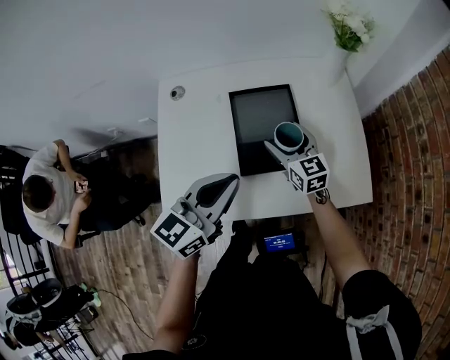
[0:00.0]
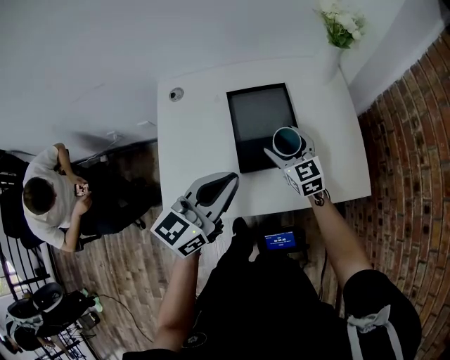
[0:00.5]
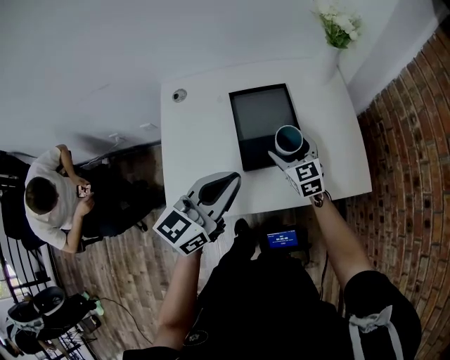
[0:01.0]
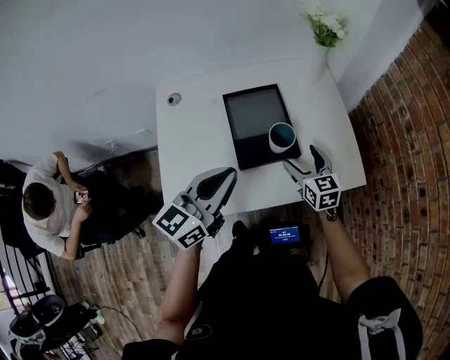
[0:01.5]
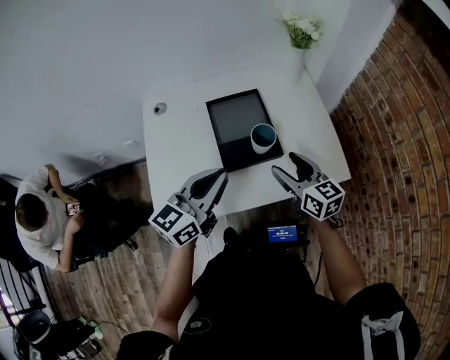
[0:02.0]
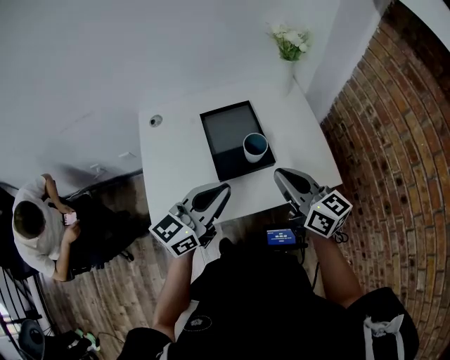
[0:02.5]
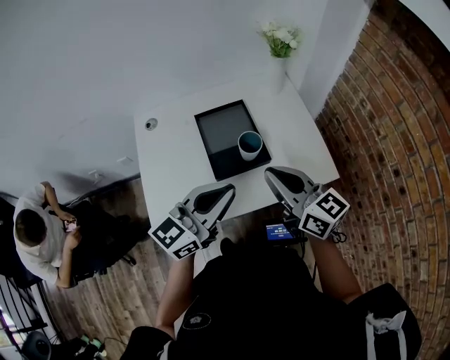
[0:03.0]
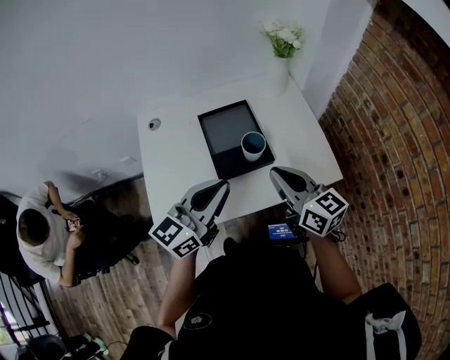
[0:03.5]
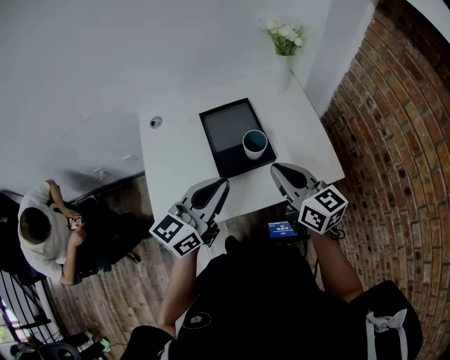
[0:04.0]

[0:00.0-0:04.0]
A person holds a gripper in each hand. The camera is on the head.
0:00.0 to 0:02.0: The right gripper moves backward, to the right and upward, roughly 15 cm.
0:02.0 to 0:04.0: The right gripper heads upward, covering some 10 cm, and closes its fingers.

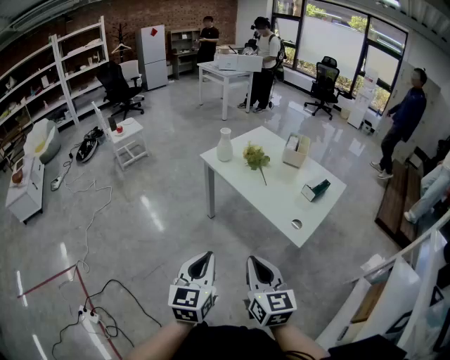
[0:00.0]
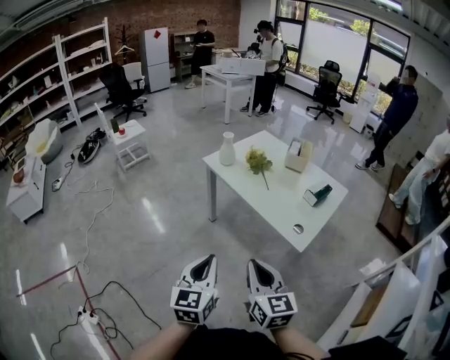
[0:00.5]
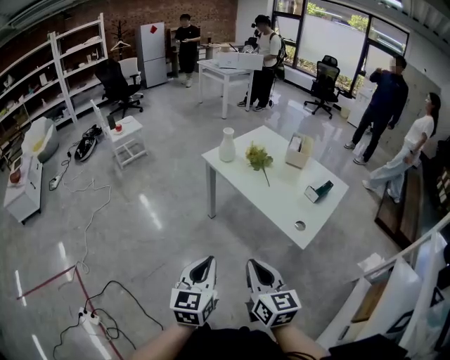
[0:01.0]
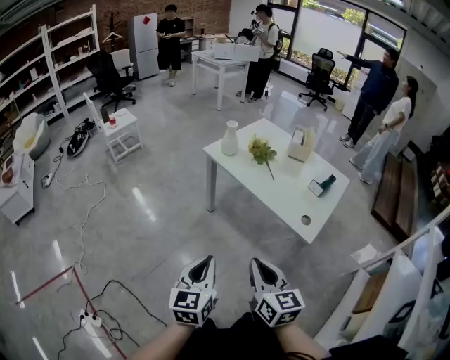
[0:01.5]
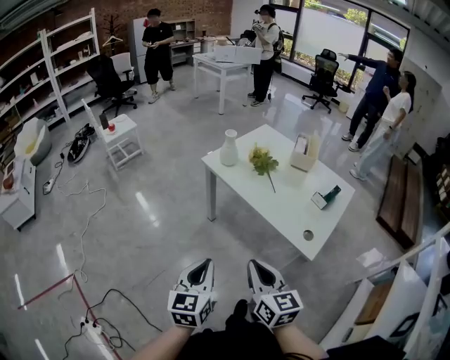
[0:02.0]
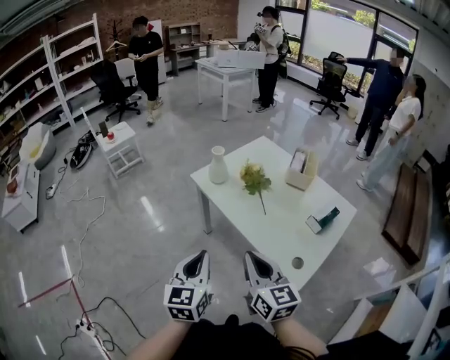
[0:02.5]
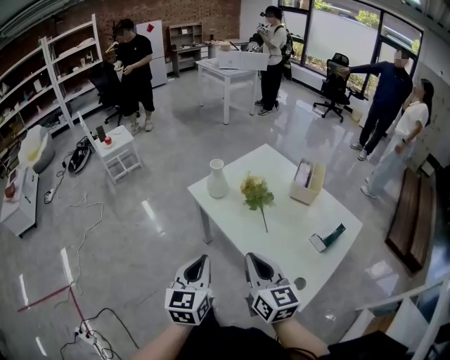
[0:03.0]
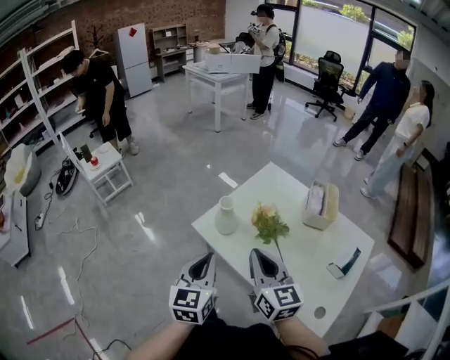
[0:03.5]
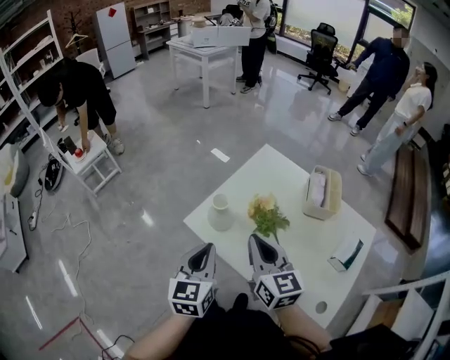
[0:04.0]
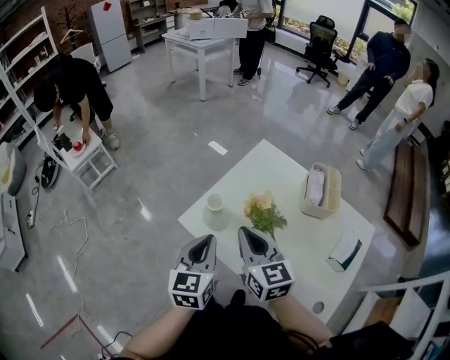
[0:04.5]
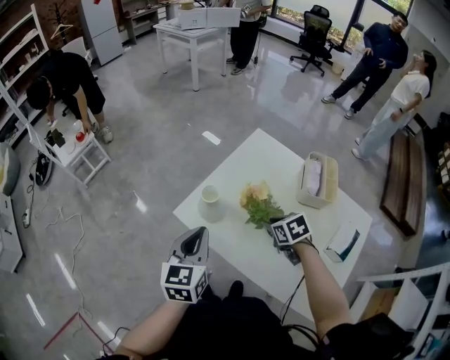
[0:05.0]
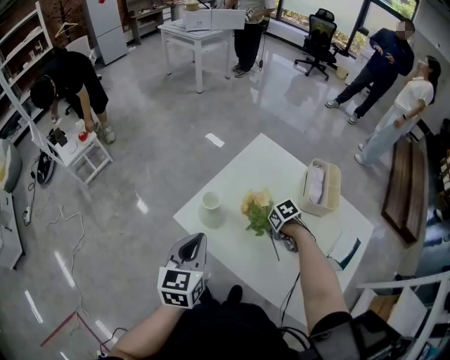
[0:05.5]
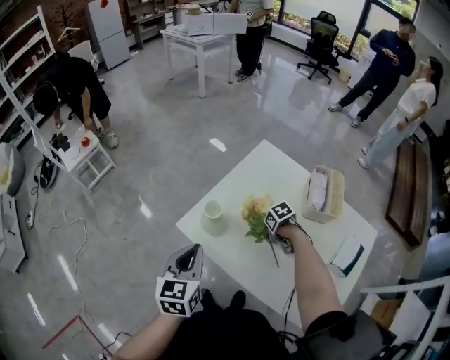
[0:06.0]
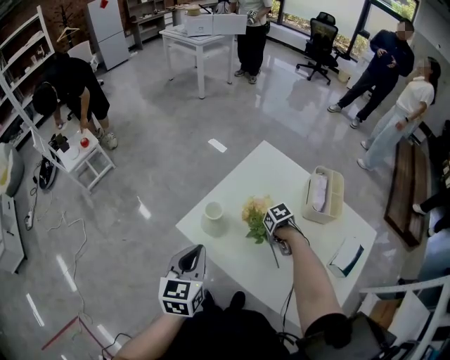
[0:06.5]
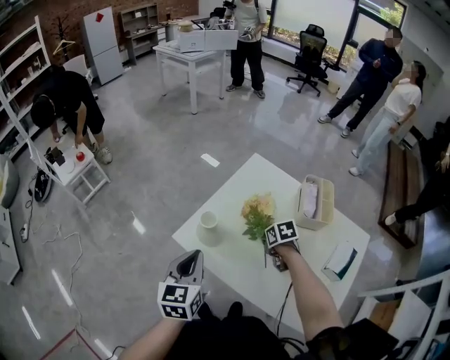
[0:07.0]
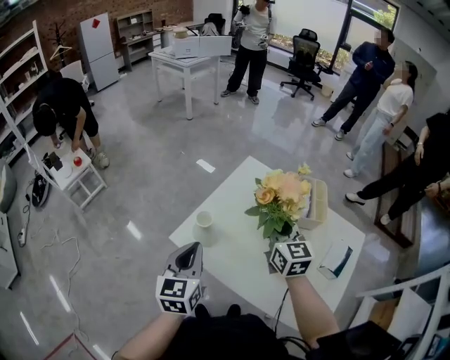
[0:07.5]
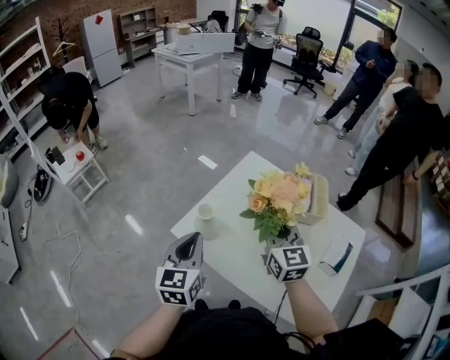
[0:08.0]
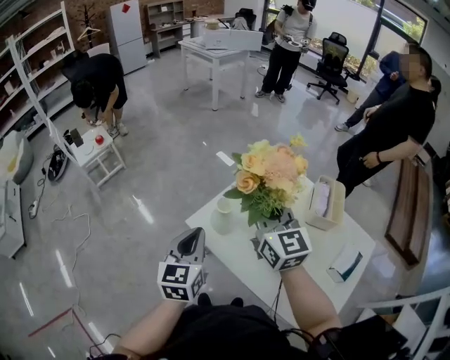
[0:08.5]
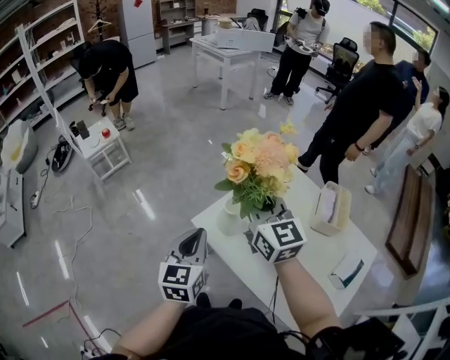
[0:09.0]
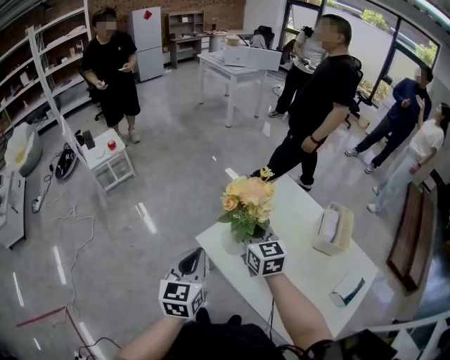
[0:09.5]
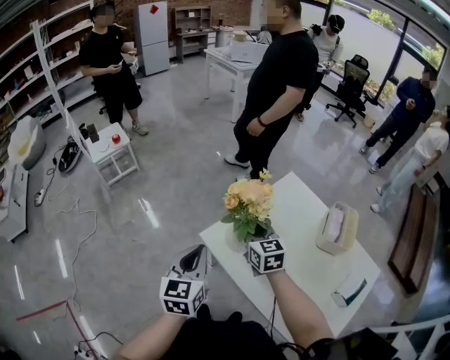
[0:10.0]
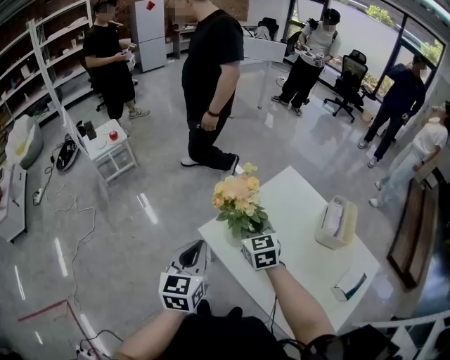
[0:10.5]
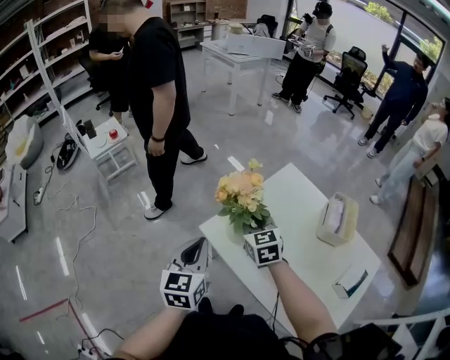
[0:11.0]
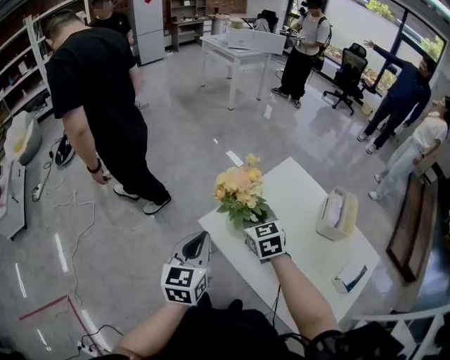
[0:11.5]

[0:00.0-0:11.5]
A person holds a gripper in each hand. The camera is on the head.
0:00.0 to 0:02.0: The left gripper shifts some 10 cm forward and to the left. Meanwhile the right gripper travels forward by roughly 10 cm.
0:02.0 to 0:04.0: The two grippers travel together, forward, about 50 cm.
0:04.0 to 0:06.0: The left gripper shifts by some 5 cm. Meanwhile the right gripper shifts approximately 30 cm downward, and points its fingers some 60 degrees further downward.
0:06.0 to 0:07.5: The right gripper shifts roughly 30 cm upward, and angles its fingers upward, by some 60 degrees.
0:07.5 to 0:09.5: The right gripper goes roughly 20 cm to the left, and rotates approximately 20 degrees. Meanwhile the left gripper travels to the left by some 10 cm.
0:09.5 to 0:11.5: The grippers move only a little.

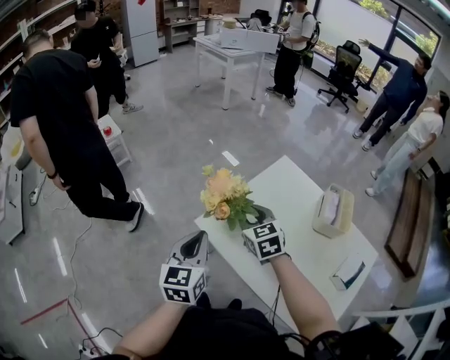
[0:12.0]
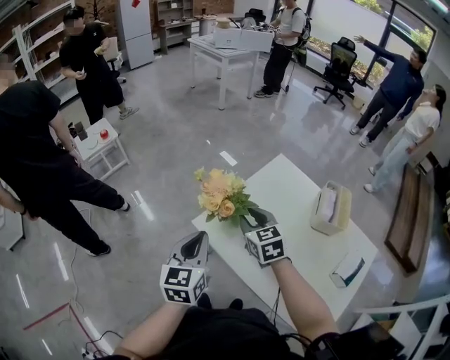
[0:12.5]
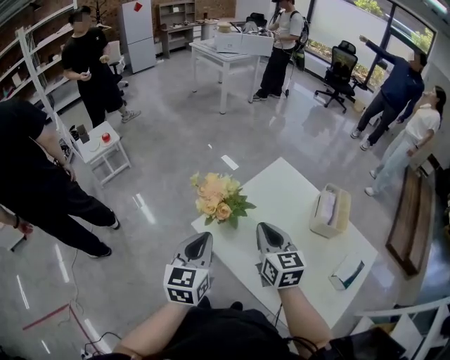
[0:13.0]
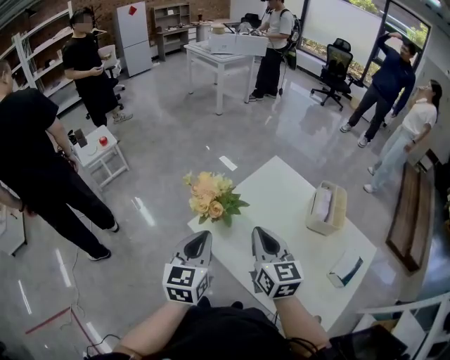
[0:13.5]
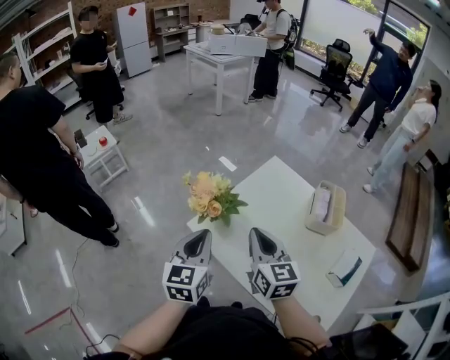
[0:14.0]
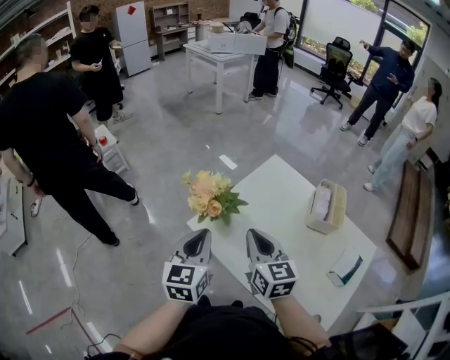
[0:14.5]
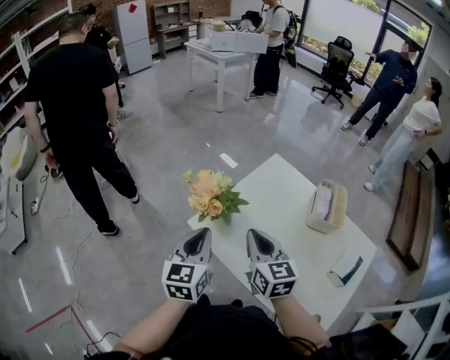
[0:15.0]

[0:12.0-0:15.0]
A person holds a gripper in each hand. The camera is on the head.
0:12.0 to 0:13.5: The right gripper travels backward, upward and to the right by some 15 cm, changes its angle by about 30 degrees, and closes.
0:13.5 to 0:15.0: The grippers make only small movements.

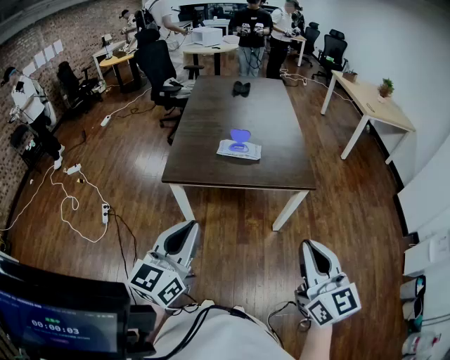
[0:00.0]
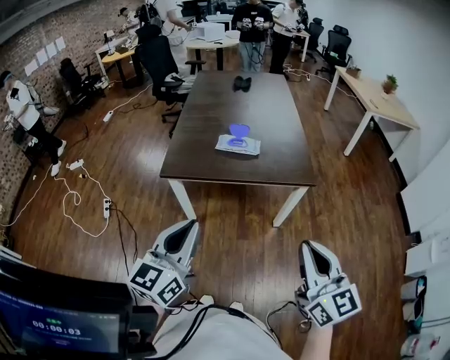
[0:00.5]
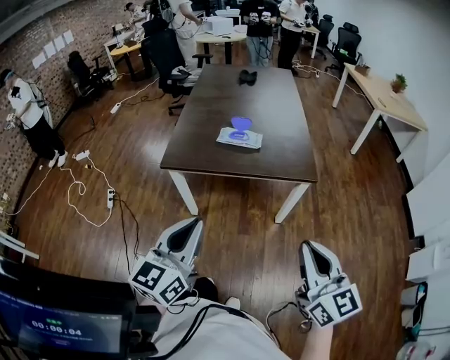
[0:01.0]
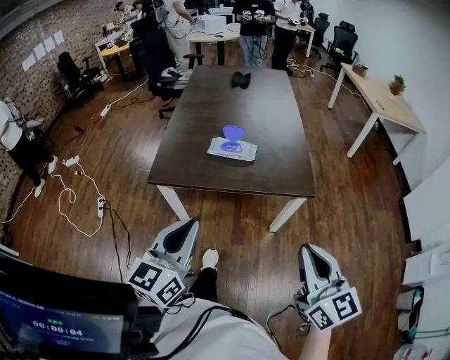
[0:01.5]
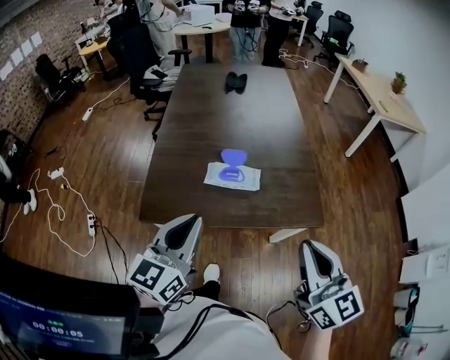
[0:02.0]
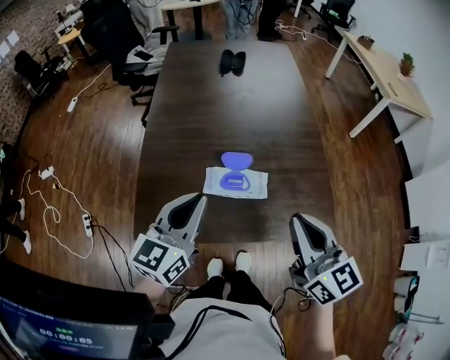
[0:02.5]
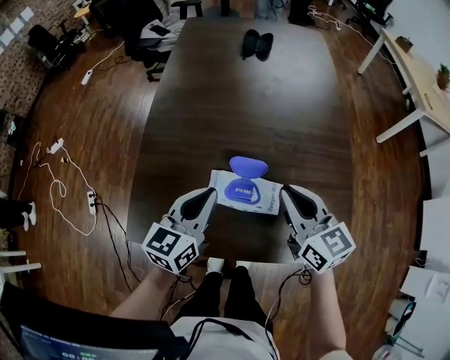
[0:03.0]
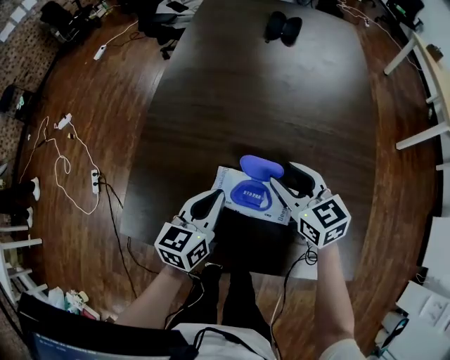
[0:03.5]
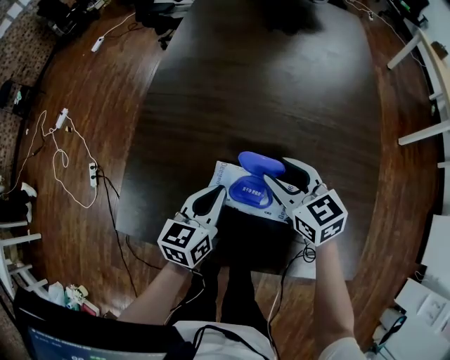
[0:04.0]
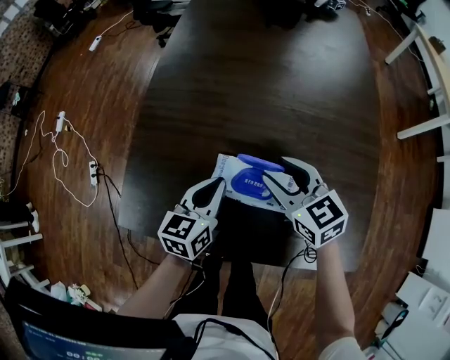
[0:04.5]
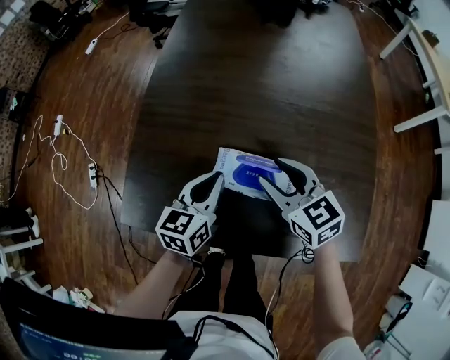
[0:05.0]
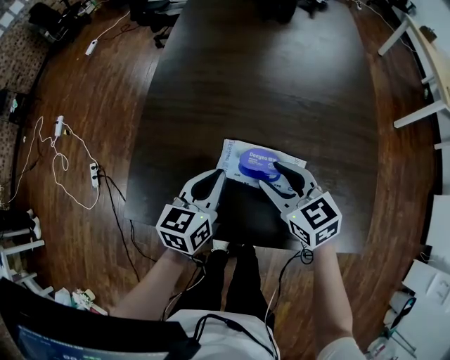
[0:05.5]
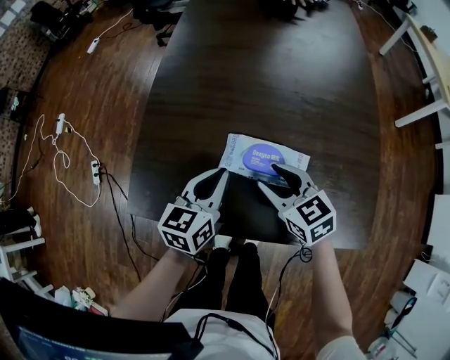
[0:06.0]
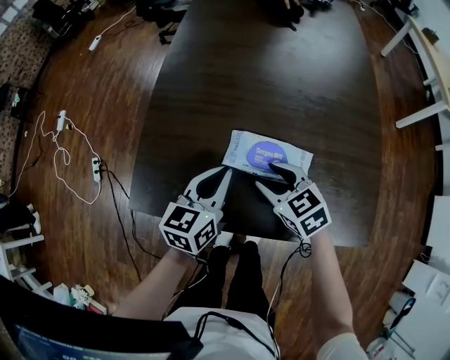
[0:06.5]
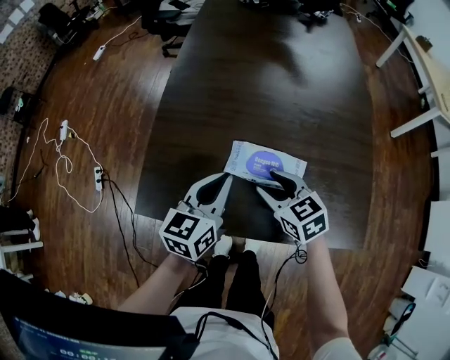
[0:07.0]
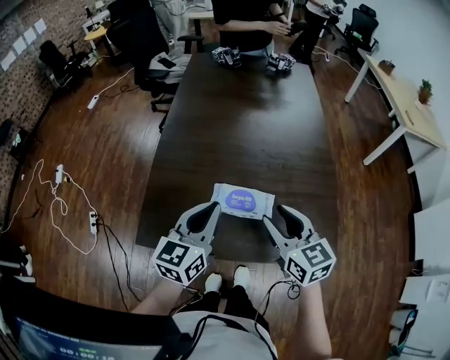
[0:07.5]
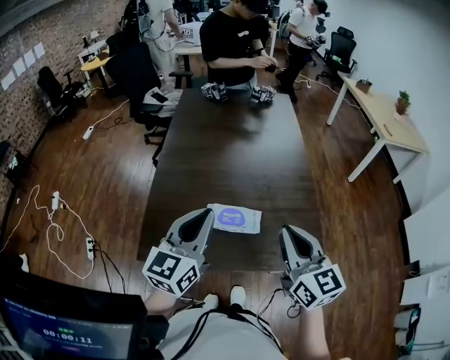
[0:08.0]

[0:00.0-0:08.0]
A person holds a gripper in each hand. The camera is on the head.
0:00.0 to 0:02.0: Both grippers travel together forward, approximately 30 cm.
0:02.0 to 0:04.0: The left gripper shifts approximately 40 cm downward and forward, and turns by some 30 degrees. Meanwhile the right gripper goes about 50 cm forward and downward, turns by approximately 40 degrees, and opens its fingers.
0:04.0 to 0:06.0: The left gripper changes place by some 5 cm, while the right gripper is displaced backward and to the left by roughly 10 cm.
0:06.0 to 0:08.0: The left gripper is displaced upward by some 30 cm, and swivels some 30 degrees, while the right gripper heads upward and backward, covering approximately 30 cm, rotates some 40 degrees, and closes up.
